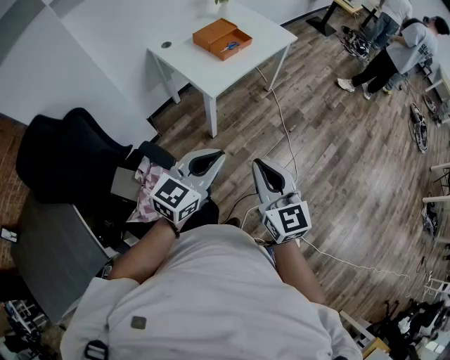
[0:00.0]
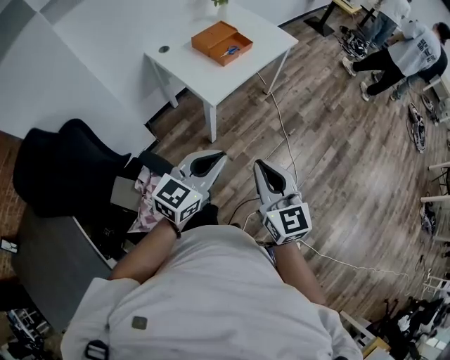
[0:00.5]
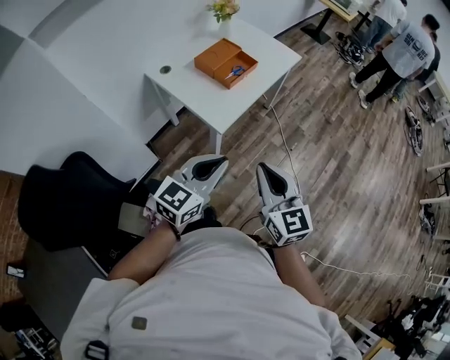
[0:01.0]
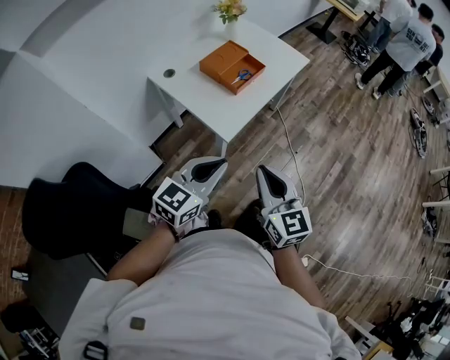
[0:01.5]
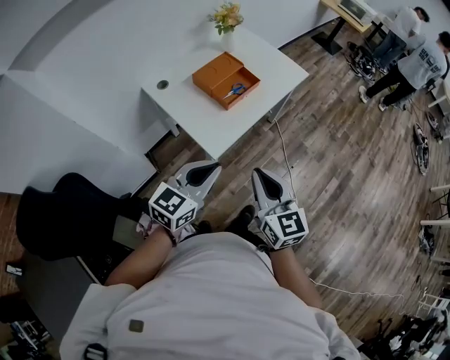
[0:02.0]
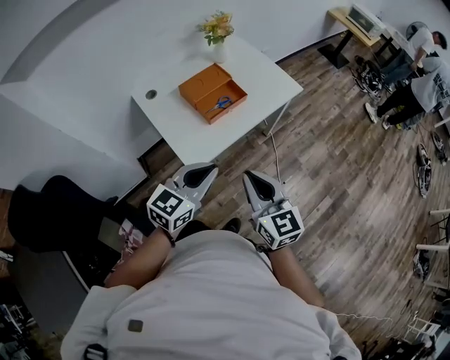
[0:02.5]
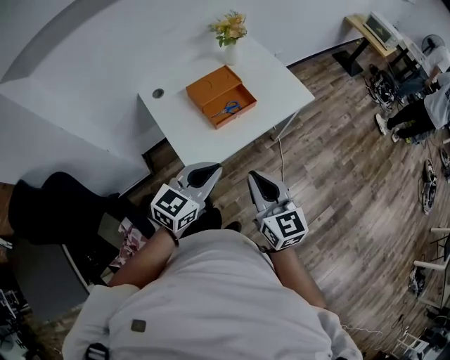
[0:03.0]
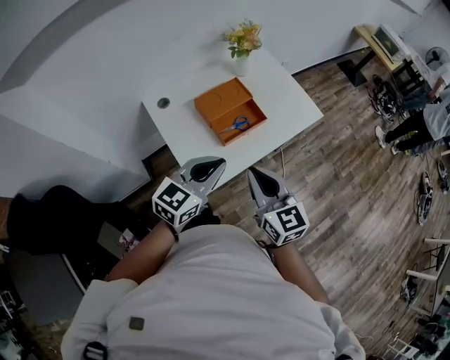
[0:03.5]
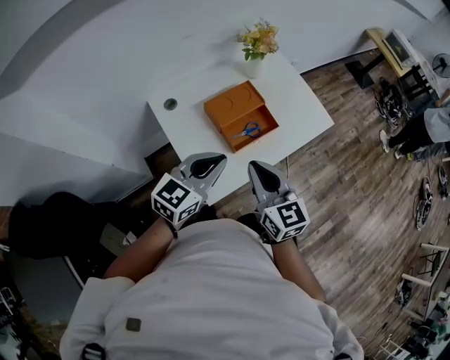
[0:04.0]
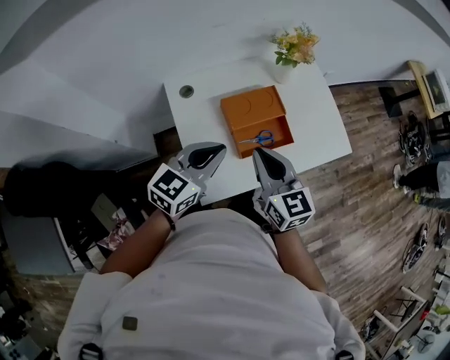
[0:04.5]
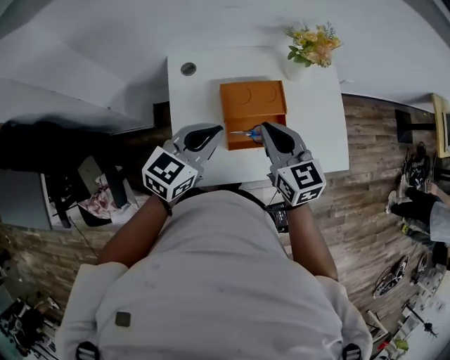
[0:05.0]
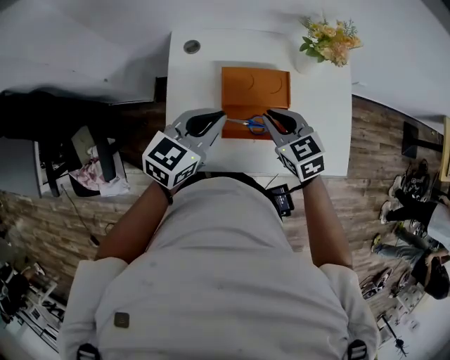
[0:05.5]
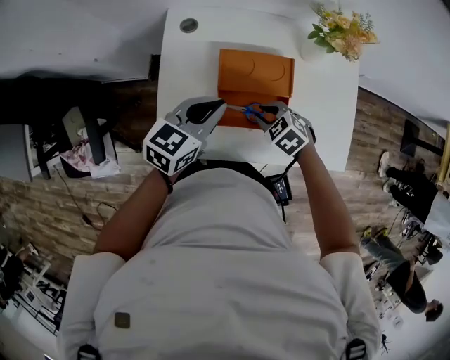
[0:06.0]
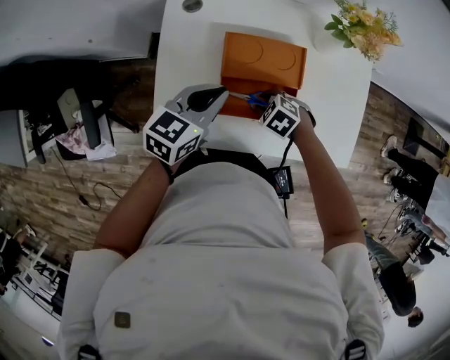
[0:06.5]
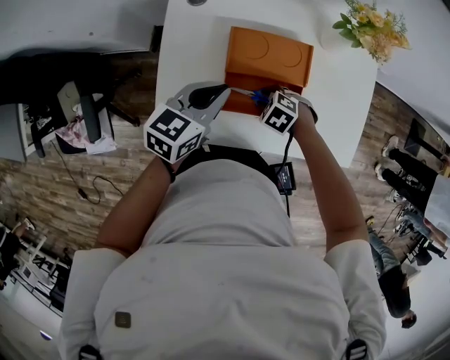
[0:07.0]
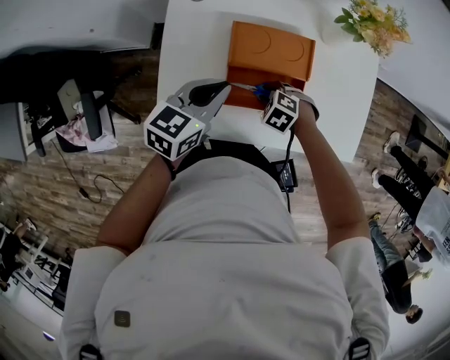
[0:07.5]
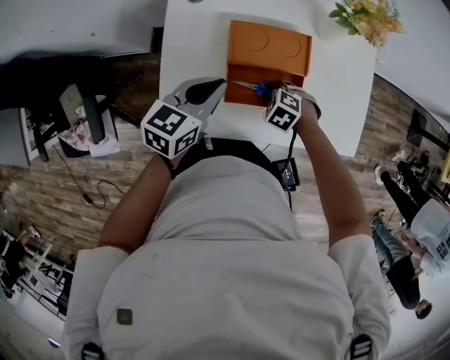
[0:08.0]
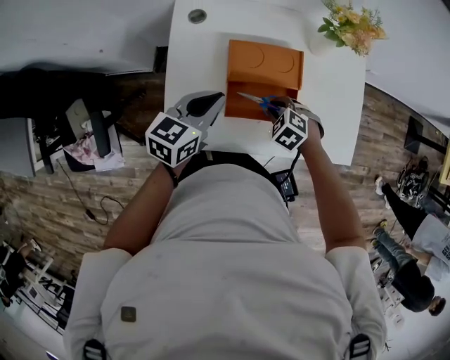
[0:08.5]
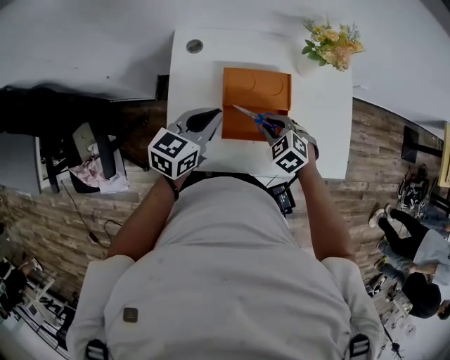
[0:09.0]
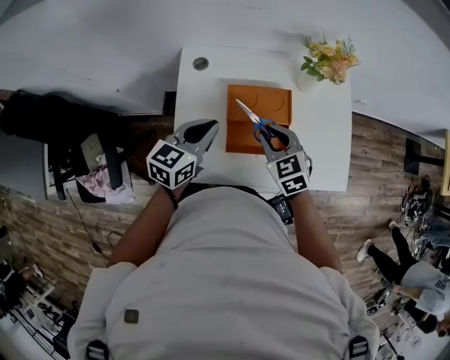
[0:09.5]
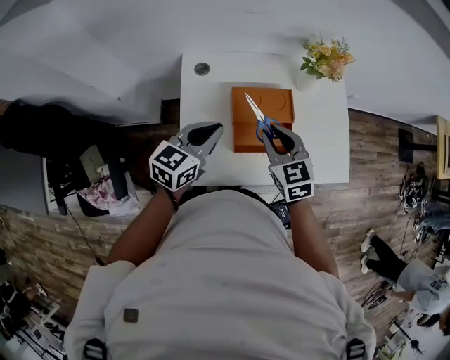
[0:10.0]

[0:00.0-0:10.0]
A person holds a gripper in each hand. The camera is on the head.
0:00.0 to 0:02.0: Both grippers move forward, some 30 cm.
0:02.0 to 0:04.0: The two grippers go roughly 25 cm forward.
0:04.0 to 0:06.0: The right gripper goes about 25 cm downward, angles its fingers downward, by roughly 50 degrees, and opens up; the left gripper moves some 20 cm, and rotates roughly 40 degrees.
0:06.0 to 0:08.0: The right gripper is displaced downward by about 10 cm, and swivels about 20 degrees.
0:08.0 to 0:10.0: The left gripper travels upward by about 10 cm. The right gripper moves upward, about 25 cm, and angles its fingers upward, by about 50 degrees.

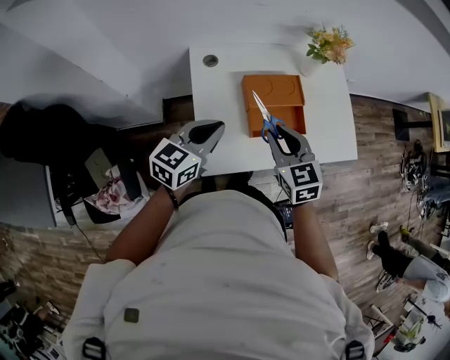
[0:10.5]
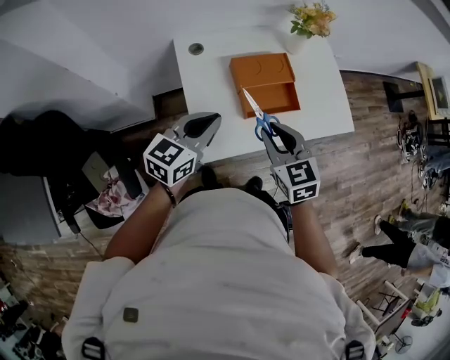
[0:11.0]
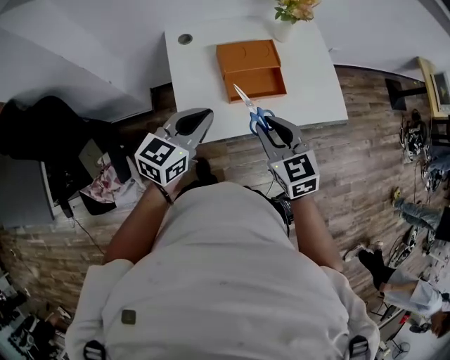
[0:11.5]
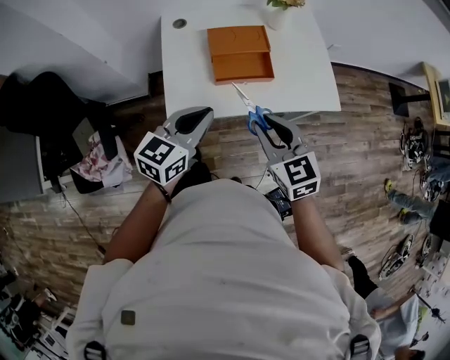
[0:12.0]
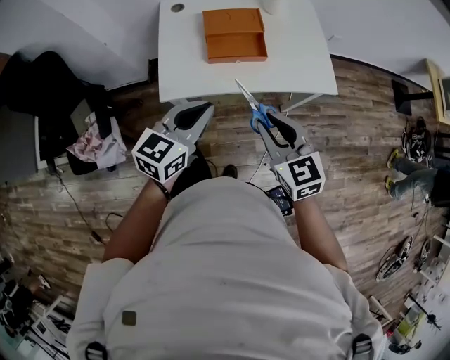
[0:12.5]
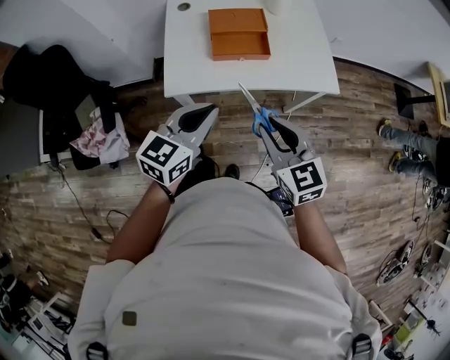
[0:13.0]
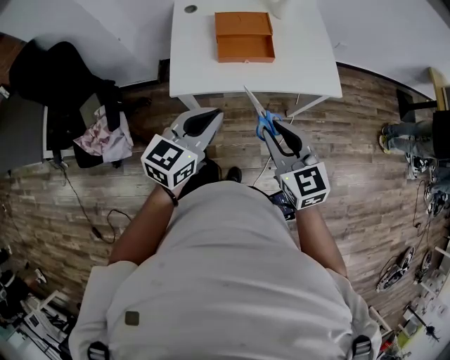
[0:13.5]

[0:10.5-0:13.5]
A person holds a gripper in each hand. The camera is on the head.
0:10.5 to 0:12.0: The left gripper travels to the right and backward by approximately 20 cm, while the right gripper moves backward and to the right, about 20 cm.
0:12.0 to 0:13.5: The grippers both shift backward and to the right by about 15 cm.

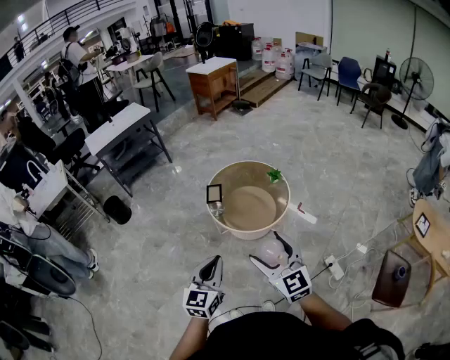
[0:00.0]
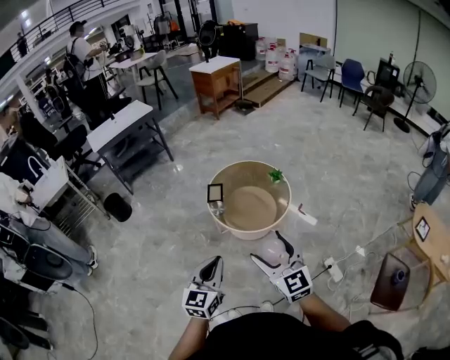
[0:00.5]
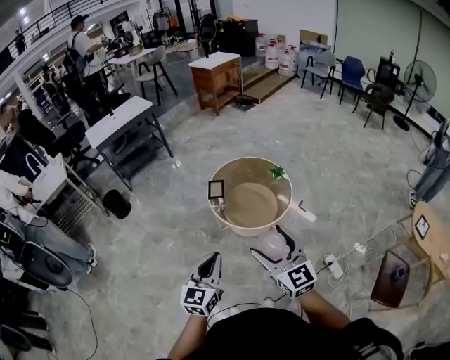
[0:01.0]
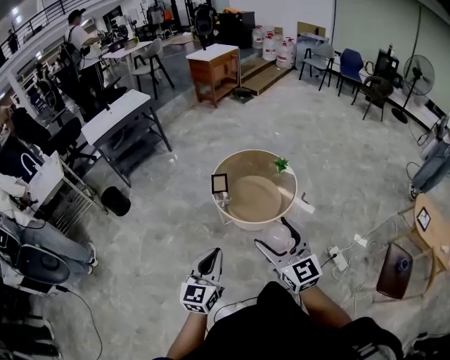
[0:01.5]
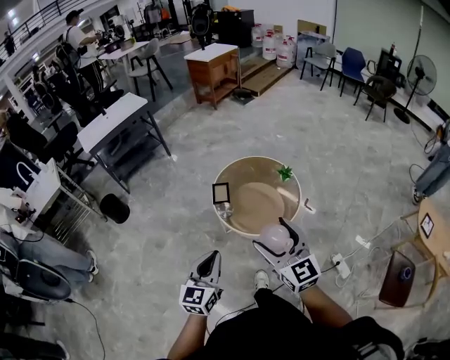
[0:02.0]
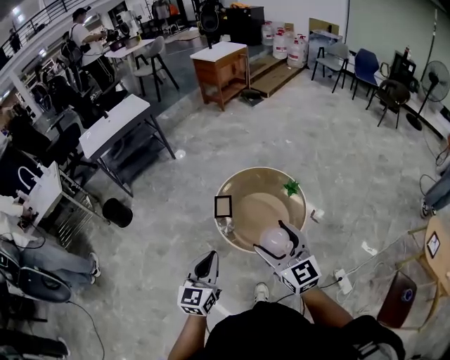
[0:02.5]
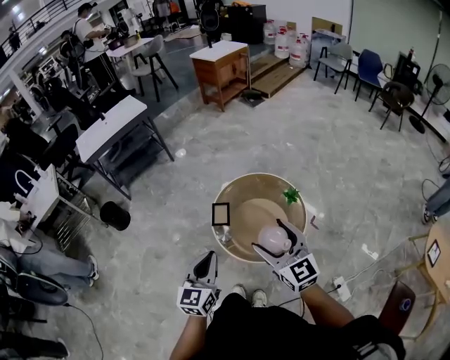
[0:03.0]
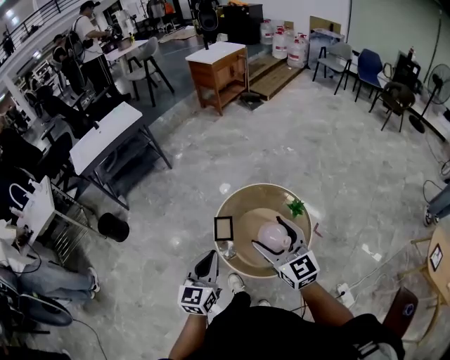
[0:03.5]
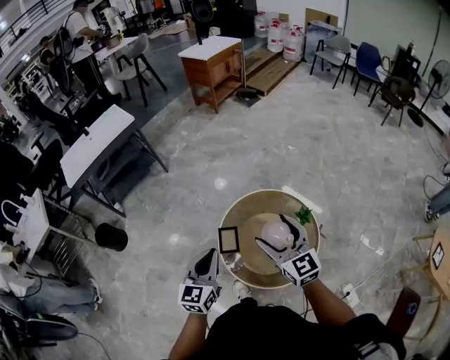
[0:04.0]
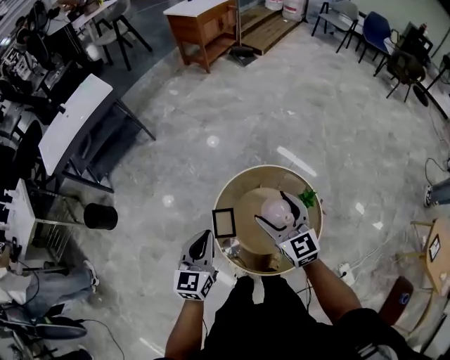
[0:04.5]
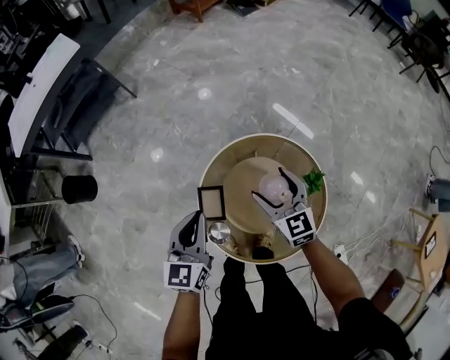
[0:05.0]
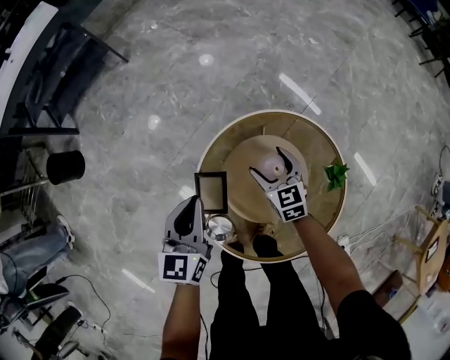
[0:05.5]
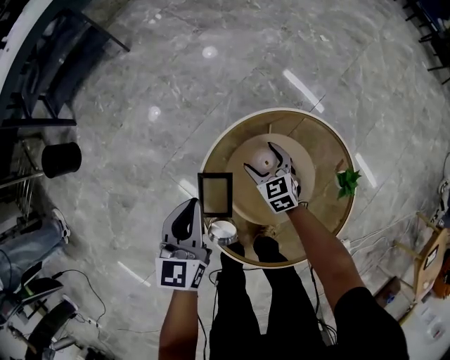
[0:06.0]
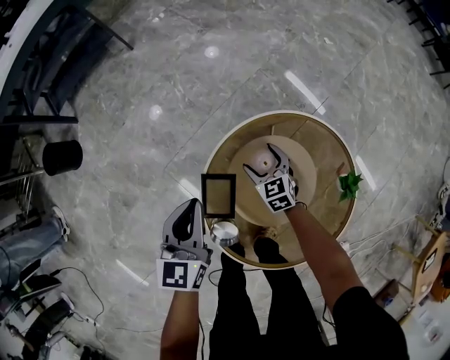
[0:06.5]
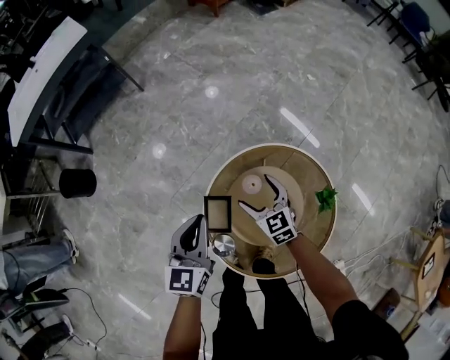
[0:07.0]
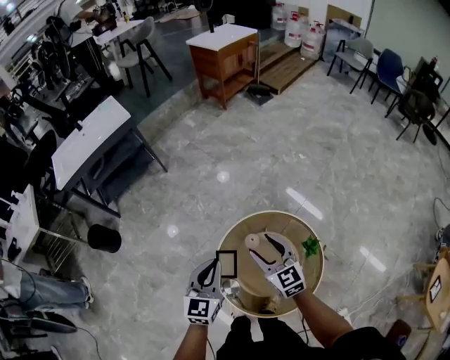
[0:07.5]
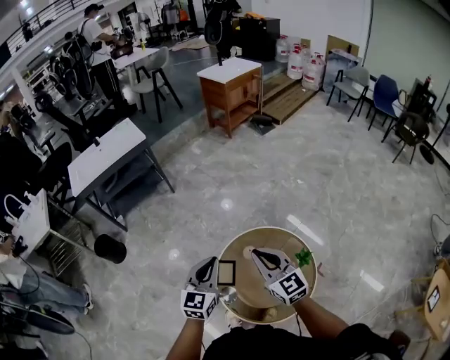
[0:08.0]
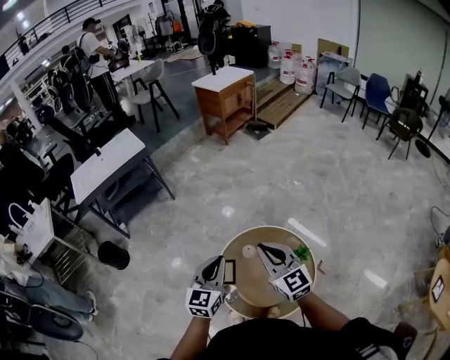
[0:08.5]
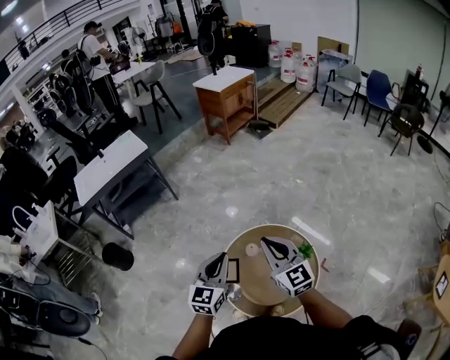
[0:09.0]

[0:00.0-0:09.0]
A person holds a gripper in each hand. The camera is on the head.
0:00.0 to 0:02.0: The right gripper moves forward, some 15 cm. Meanwhile the left gripper shifts roughly 15 cm forward and to the left.
0:02.0 to 0:04.5: The pair of grippers is taken forward, approximately 50 cm.
0:04.5 to 0:07.0: The right gripper travels downward by approximately 30 cm, and changes its angle by about 20 degrees, while the left gripper shifts approximately 15 cm downward and forward.
0:07.0 to 0:09.0: The right gripper heads upward, covering some 40 cm, angles its fingers upward, by roughly 30 degrees, and closes up; the left gripper moves upward and backward, approximately 25 cm.

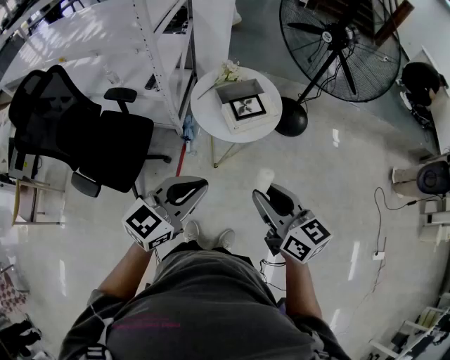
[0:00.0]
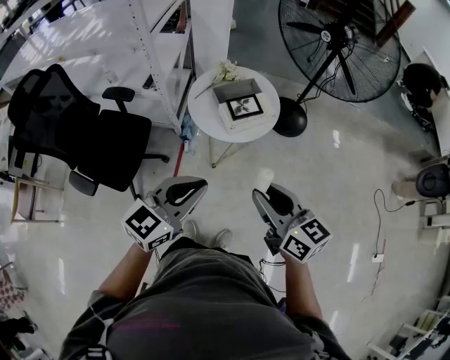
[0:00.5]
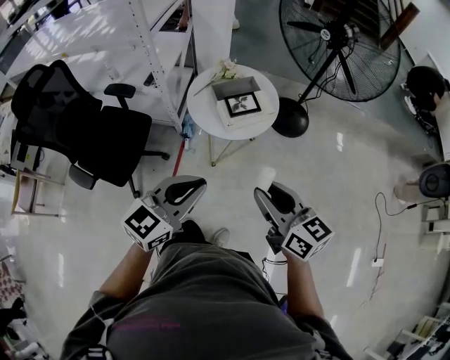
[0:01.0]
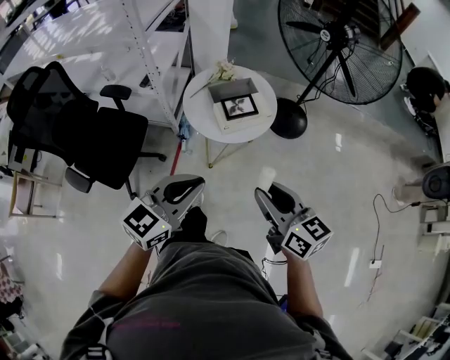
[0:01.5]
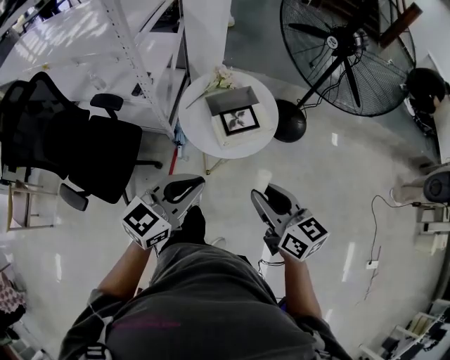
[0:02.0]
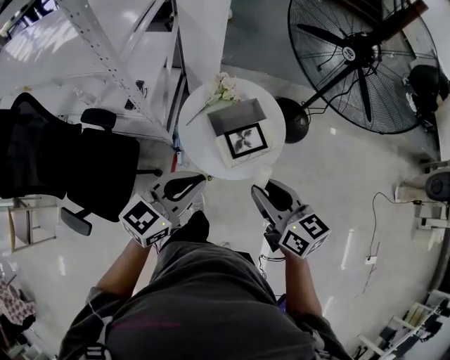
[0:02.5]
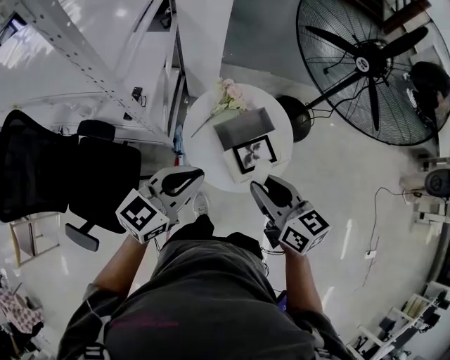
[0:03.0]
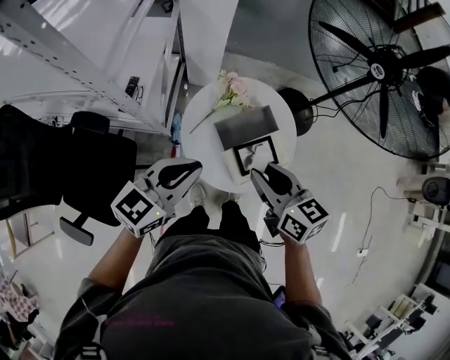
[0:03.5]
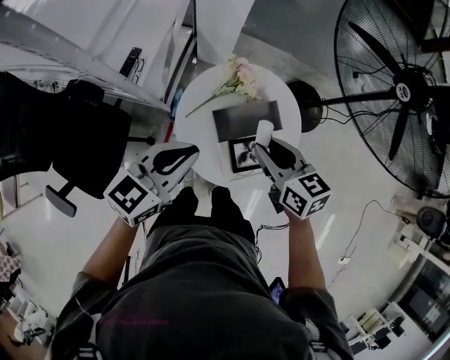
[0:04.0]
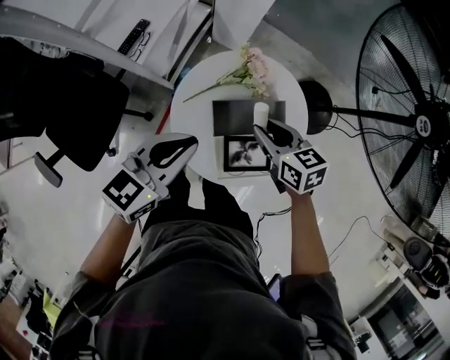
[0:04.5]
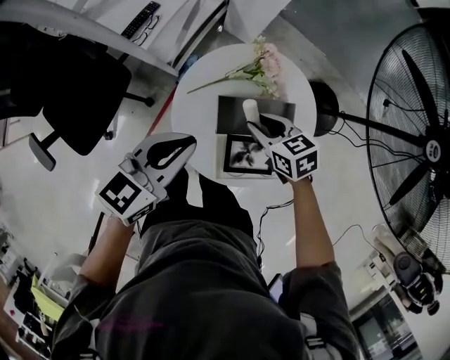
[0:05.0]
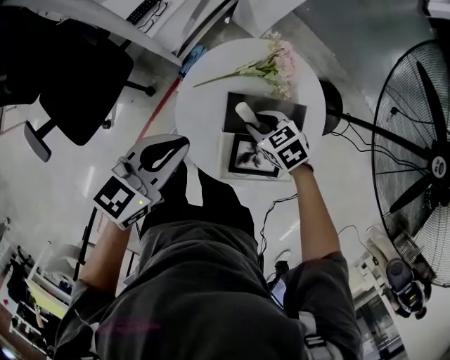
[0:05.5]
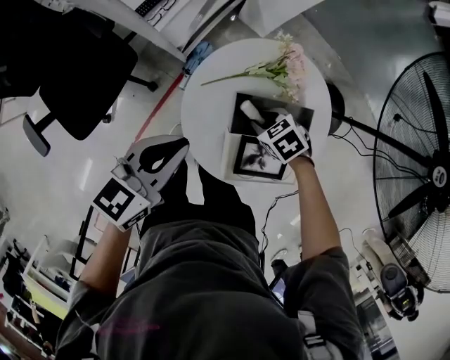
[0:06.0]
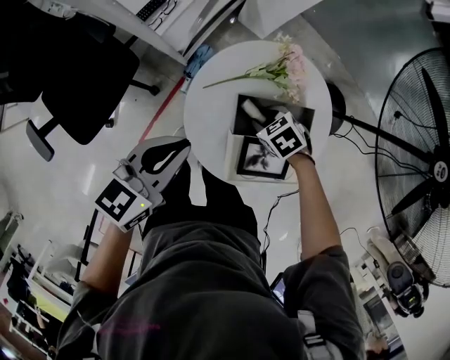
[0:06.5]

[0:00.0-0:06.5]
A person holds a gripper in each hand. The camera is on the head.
0:00.0 to 0:02.0: Both grippers travel together forward, approximately 10 cm.
0:02.0 to 0:04.5: The left gripper travels forward by about 35 cm, and changes its angle by about 20 degrees; the right gripper heads forward and downward, covering about 50 cm, and swivels some 30 degrees.
0:04.5 to 0:06.5: The right gripper goes roughly 20 cm downward, and points its fingers roughly 30 degrees further downward, while the left gripper changes place by some 10 cm.
